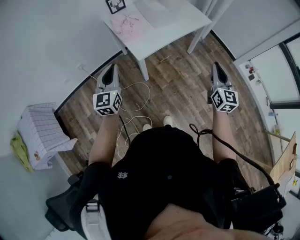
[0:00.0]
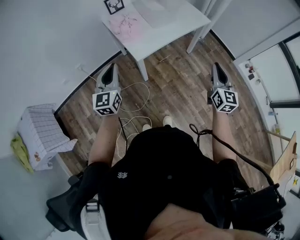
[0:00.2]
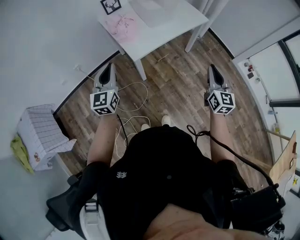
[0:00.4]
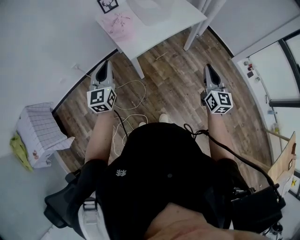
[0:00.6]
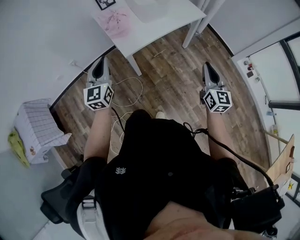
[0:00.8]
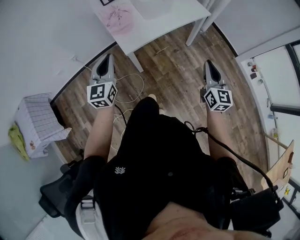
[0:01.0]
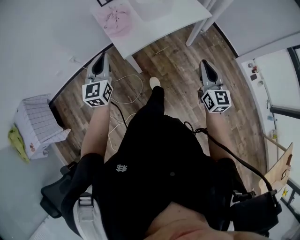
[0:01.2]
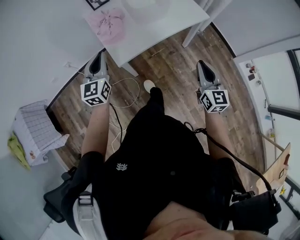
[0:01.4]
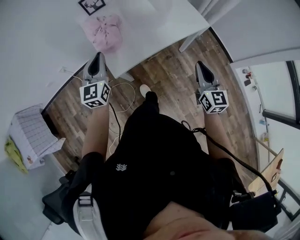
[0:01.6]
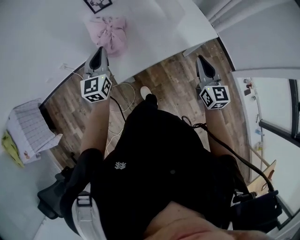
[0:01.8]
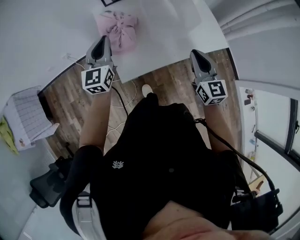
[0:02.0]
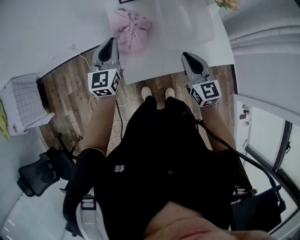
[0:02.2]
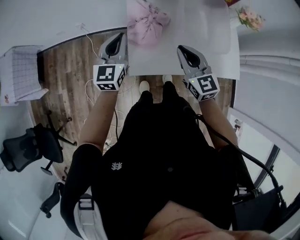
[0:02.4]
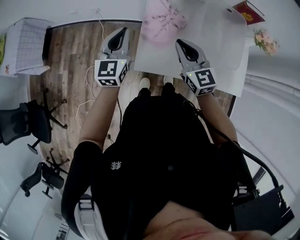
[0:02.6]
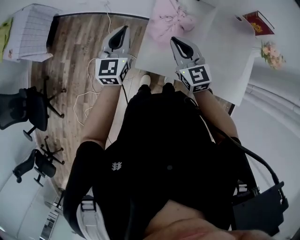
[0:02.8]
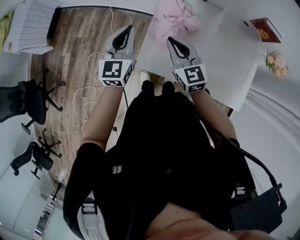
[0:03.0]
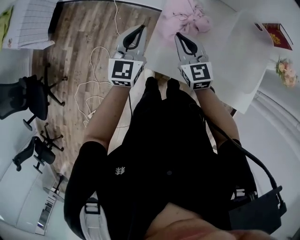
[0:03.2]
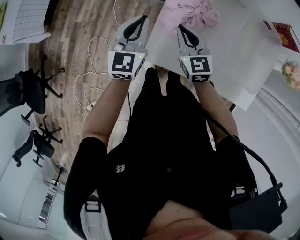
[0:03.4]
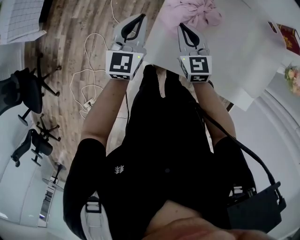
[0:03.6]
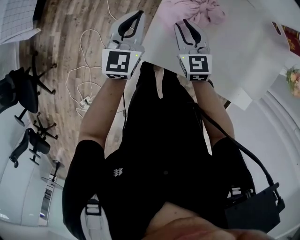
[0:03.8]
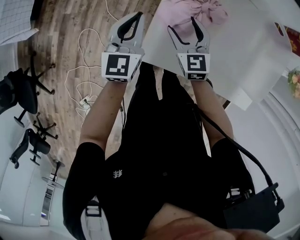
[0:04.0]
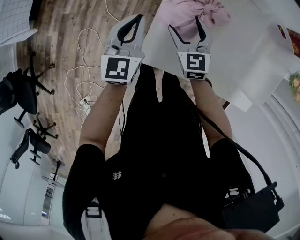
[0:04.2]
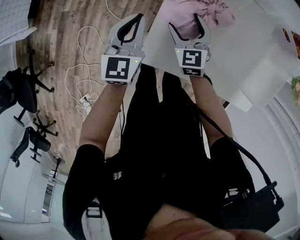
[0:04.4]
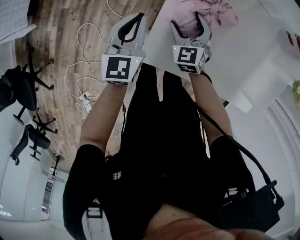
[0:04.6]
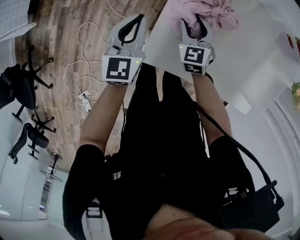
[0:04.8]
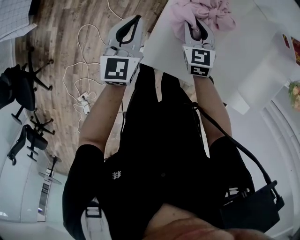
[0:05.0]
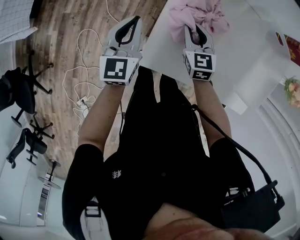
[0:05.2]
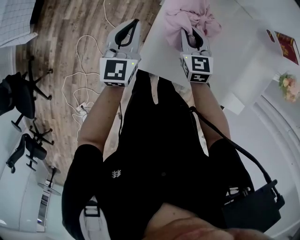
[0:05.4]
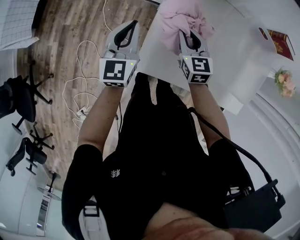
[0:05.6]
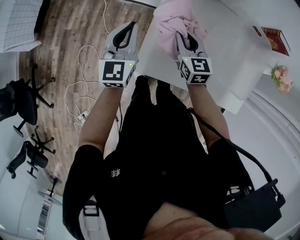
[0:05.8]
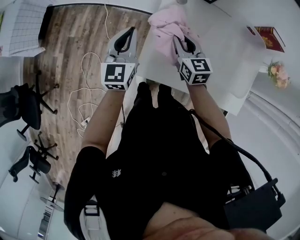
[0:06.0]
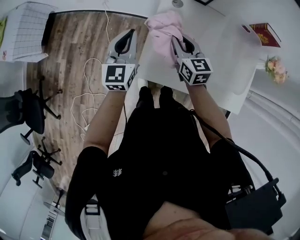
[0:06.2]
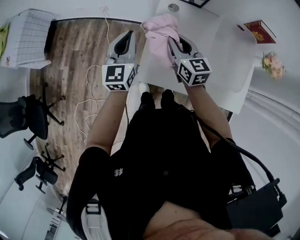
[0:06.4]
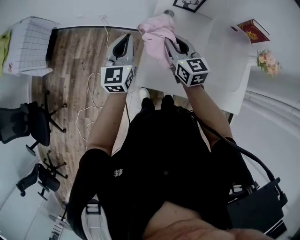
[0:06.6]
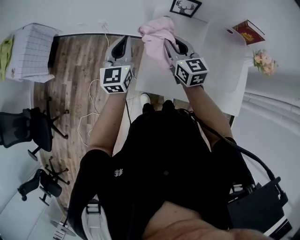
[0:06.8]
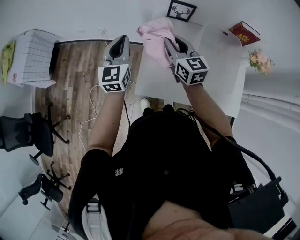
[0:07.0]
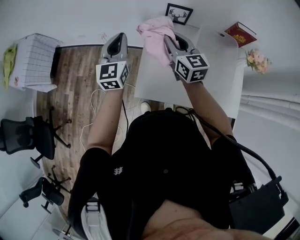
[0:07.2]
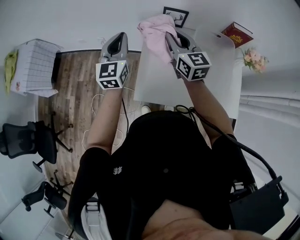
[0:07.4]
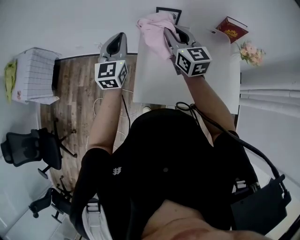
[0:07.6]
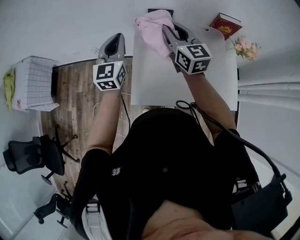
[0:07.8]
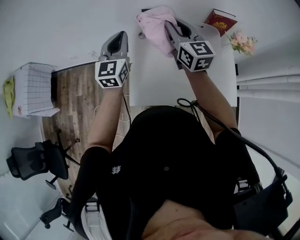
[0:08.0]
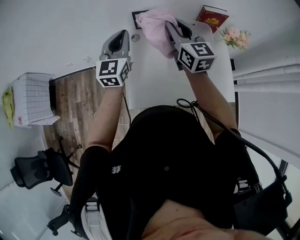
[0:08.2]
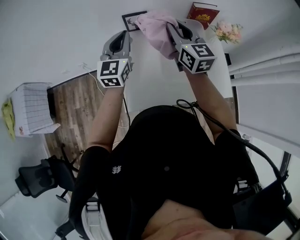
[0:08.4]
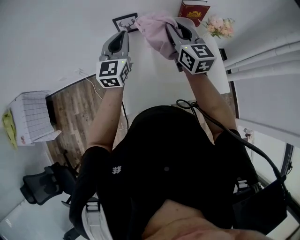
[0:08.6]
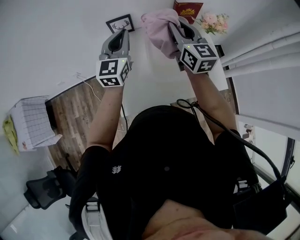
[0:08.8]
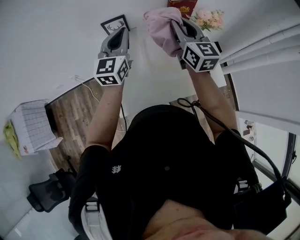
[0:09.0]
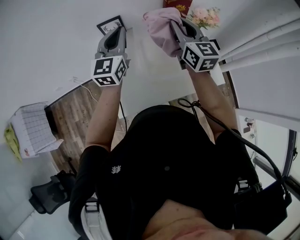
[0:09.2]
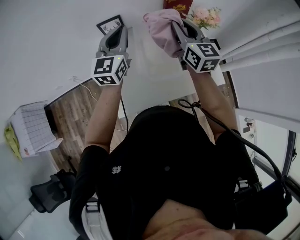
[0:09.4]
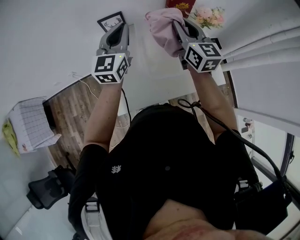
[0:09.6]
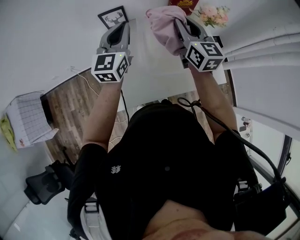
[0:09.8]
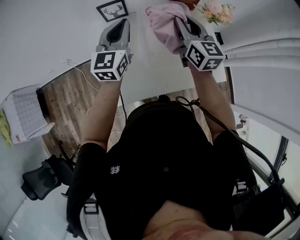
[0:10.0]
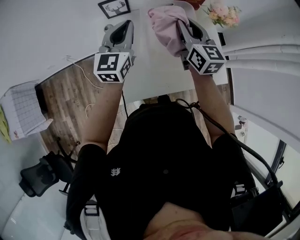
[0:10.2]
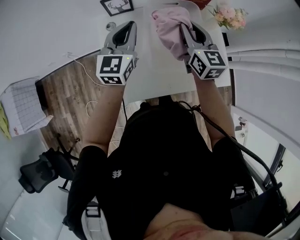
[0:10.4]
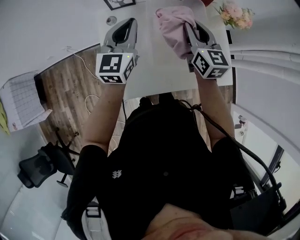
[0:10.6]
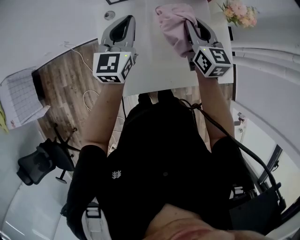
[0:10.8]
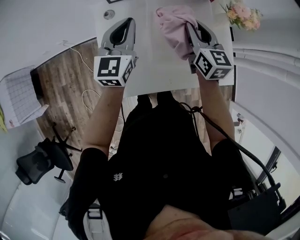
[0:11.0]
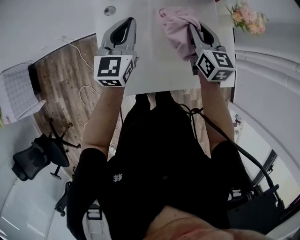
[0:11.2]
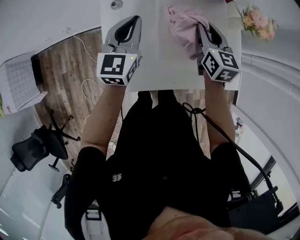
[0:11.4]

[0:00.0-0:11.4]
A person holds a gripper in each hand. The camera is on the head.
0:00.0 to 0:01.4: The left gripper shifts approximately 20 cm forward and to the right. The right gripper is displaced forward and downward by about 15 cm.
0:01.4 to 0:02.8: The right gripper ends up roughly 50 cm from where it was, and turns by some 60 degrees, while the left gripper ends up roughly 20 cm from where it was, and changes its angle by about 40 degrees.
0:02.8 to 0:04.2: The grippers both shift downward by some 15 cm. The right gripper opens up.
0:04.2 to 0:05.6: The right gripper changes place by roughly 5 cm, and closes its fingers.
0:05.6 to 0:07.2: The two grippers go approximately 20 cm upward. The right gripper turns by some 20 degrees.
0:07.2 to 0:08.6: The two grippers go about 20 cm to the right. The right gripper changes its angle by approximately 20 degrees. Meanwhile the left gripper swivels some 30 degrees.
0:08.6 to 0:10.0: The left gripper goes approximately 5 cm to the right; the right gripper travels to the right and downward by some 10 cm.
0:10.0 to 0:11.4: Both grippers move downward, approximately 15 cm.

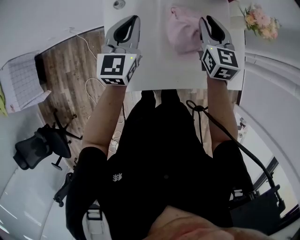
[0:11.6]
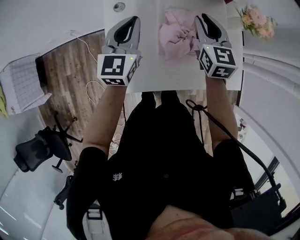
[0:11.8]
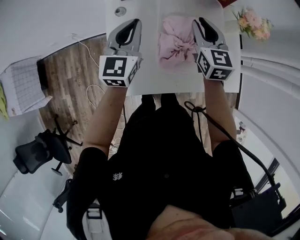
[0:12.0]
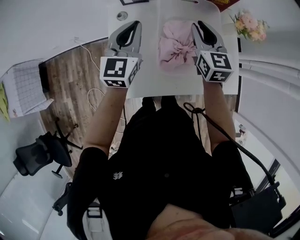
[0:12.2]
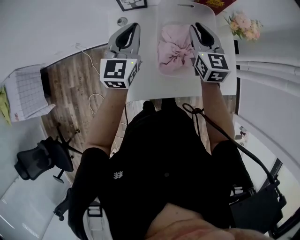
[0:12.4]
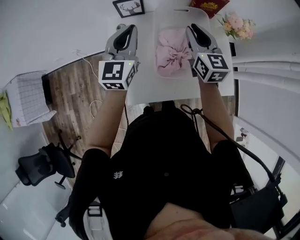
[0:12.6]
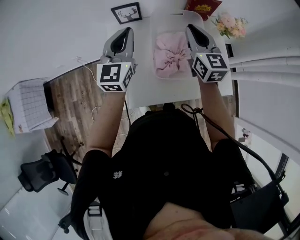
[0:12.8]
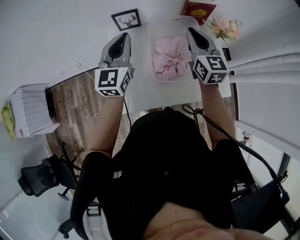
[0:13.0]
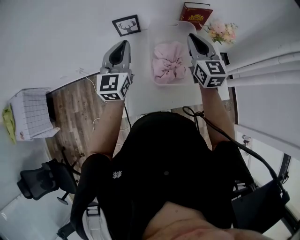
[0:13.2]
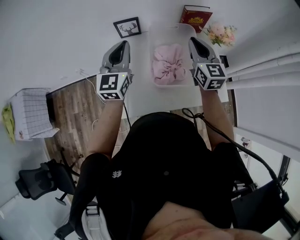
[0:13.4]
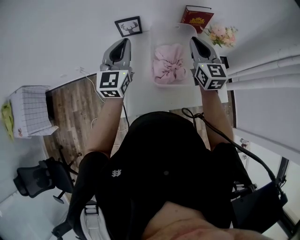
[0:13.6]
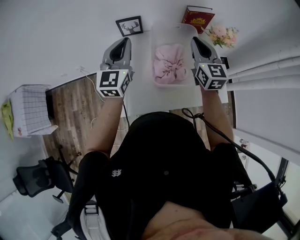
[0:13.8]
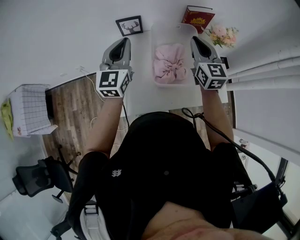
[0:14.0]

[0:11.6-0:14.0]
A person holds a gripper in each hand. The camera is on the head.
0:11.6 to 0:12.8: The grippers both shift upward by roughly 10 cm.
0:12.8 to 0:14.0: There are only small adjustments of the grippers.

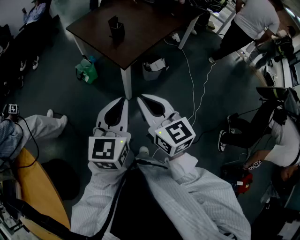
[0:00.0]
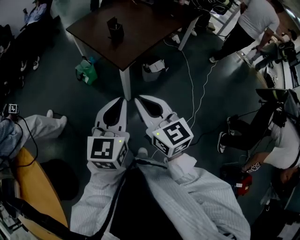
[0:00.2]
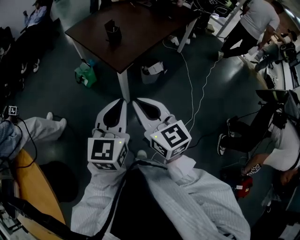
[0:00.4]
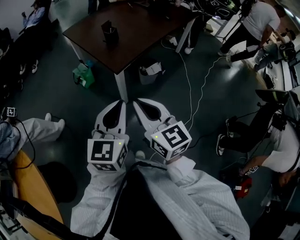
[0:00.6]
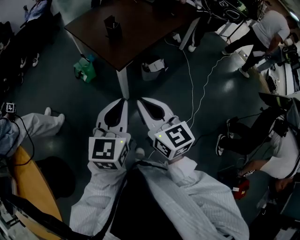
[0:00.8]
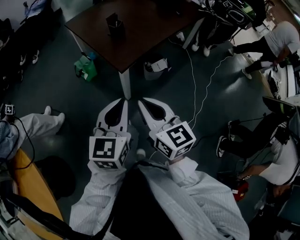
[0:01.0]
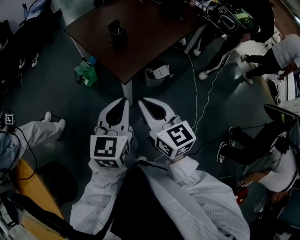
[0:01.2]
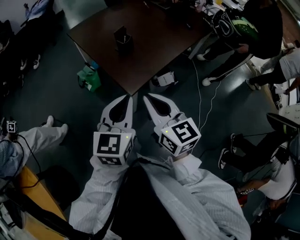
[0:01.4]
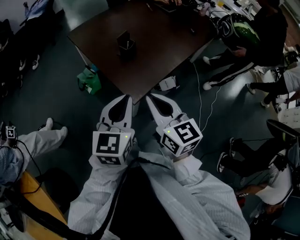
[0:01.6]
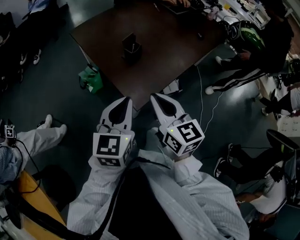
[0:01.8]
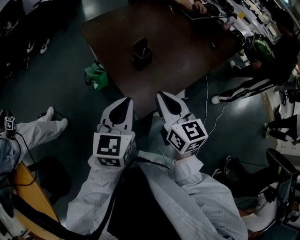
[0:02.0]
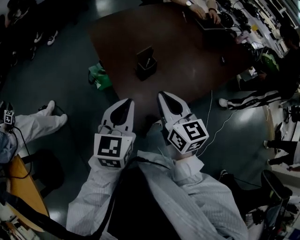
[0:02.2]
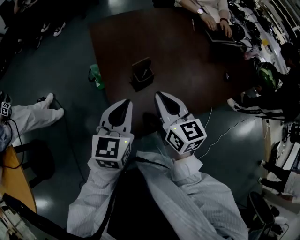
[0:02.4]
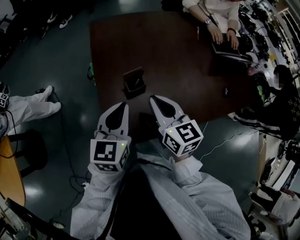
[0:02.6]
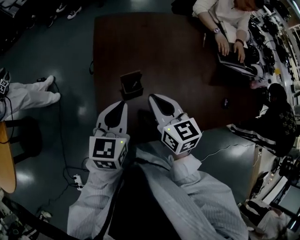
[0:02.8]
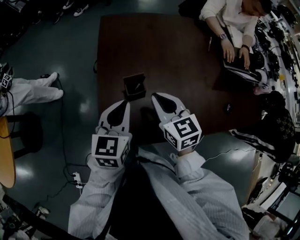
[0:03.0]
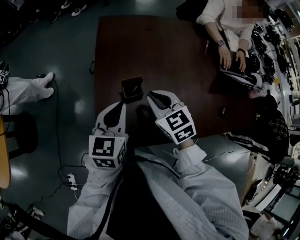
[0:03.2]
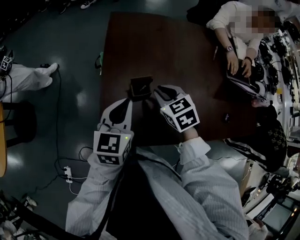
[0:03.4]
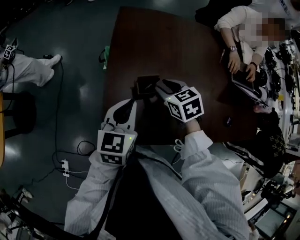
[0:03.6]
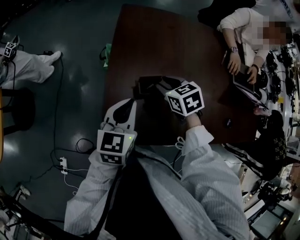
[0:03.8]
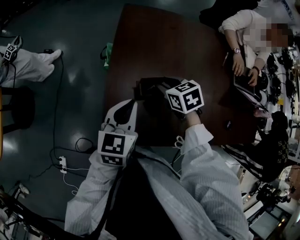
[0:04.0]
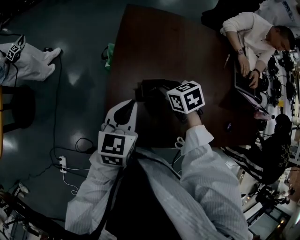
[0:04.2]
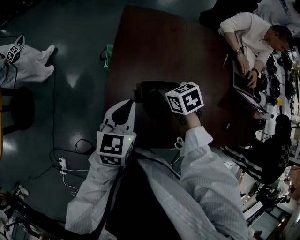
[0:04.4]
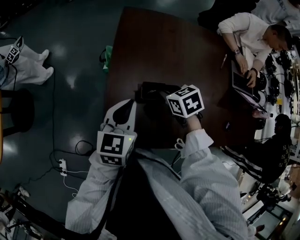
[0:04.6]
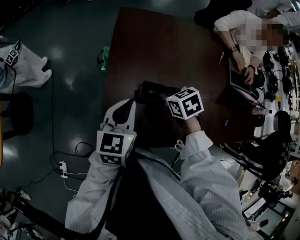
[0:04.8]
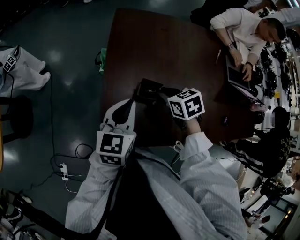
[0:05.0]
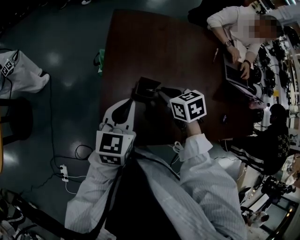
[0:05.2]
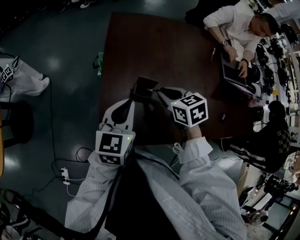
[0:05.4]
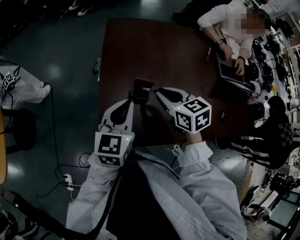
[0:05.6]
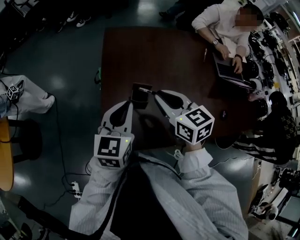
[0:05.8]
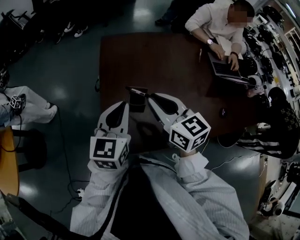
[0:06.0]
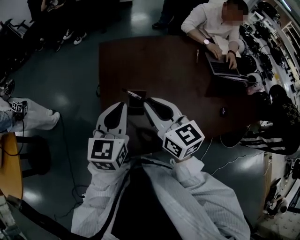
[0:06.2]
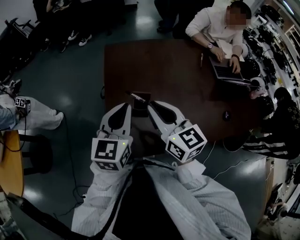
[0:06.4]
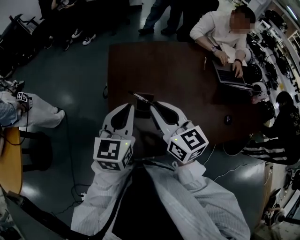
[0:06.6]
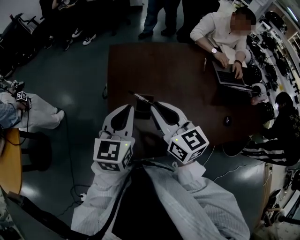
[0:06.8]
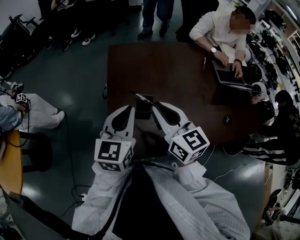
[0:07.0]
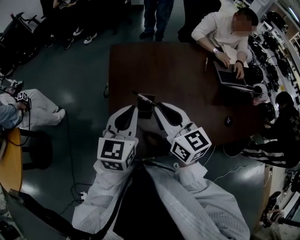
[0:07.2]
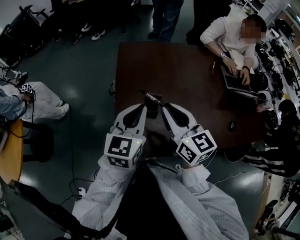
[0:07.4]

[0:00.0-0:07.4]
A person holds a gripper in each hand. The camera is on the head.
0:00.0 to 0:01.4: Both grippers move forward, approximately 20 cm.
0:01.4 to 0:03.0: The left gripper ends up approximately 35 cm from where it was, and turns by about 40 degrees. Meanwhile the right gripper shifts by some 40 cm, and turns by some 40 degrees.
0:03.0 to 0:04.4: The left gripper ends up about 5 cm from where it was, while the right gripper shifts approximately 10 cm downward and forward, rotates approximately 30 degrees, and opens its fingers.
0:04.4 to 0:06.0: The right gripper heads upward and backward, covering about 20 cm, and tips its fingers upward by some 40 degrees, while the left gripper shifts some 10 cm upward.
0:06.0 to 0:07.4: The grippers move only a little.

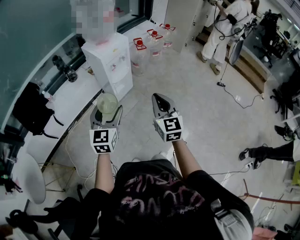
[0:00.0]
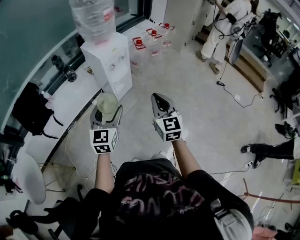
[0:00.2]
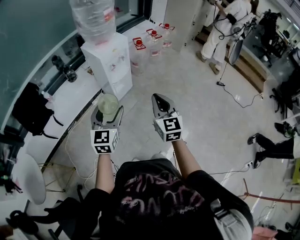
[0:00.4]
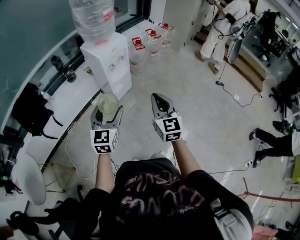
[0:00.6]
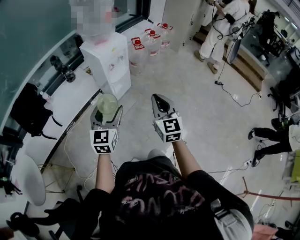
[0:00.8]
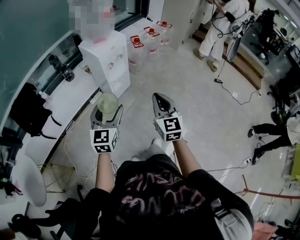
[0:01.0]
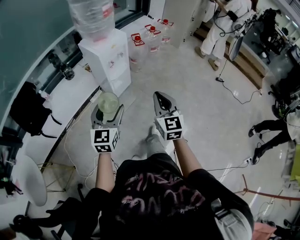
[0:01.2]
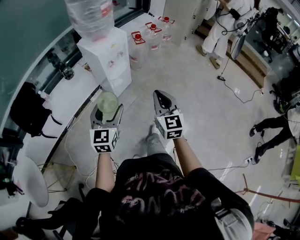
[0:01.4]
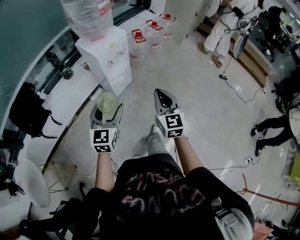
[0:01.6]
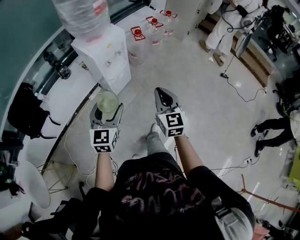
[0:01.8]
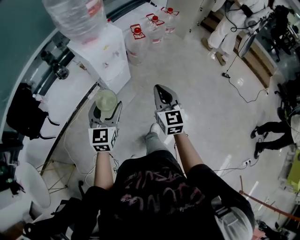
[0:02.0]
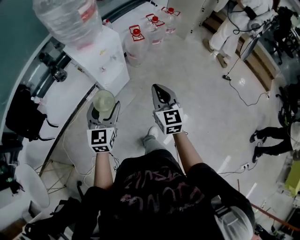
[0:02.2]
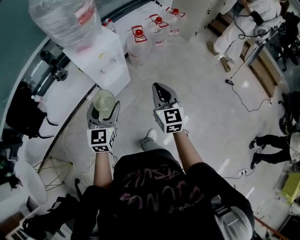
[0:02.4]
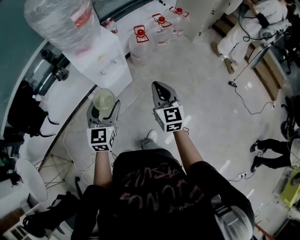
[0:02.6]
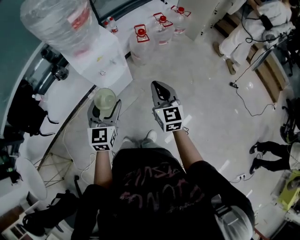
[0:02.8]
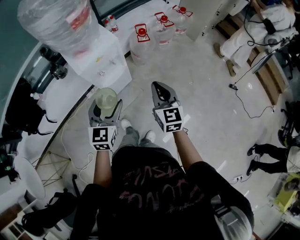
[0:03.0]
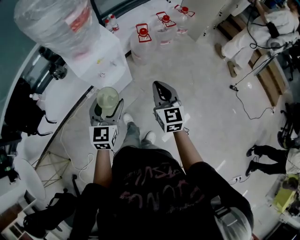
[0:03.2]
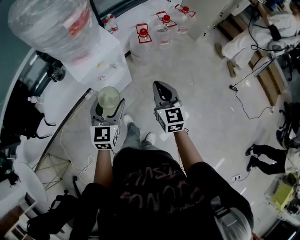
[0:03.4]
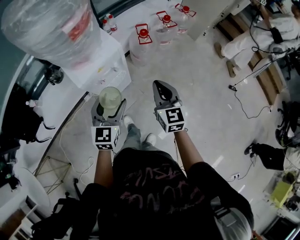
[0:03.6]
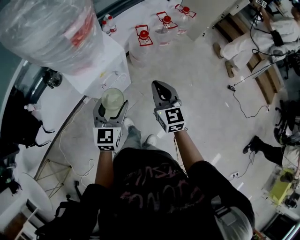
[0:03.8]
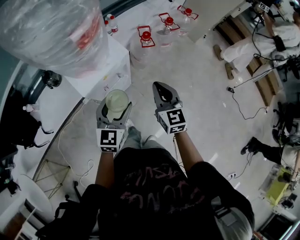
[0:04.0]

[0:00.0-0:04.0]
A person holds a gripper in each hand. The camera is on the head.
0:00.0 to 0:01.4: The grippers make only small movements.
0:01.4 to 0:02.6: The right gripper is displaced forward by approximately 30 cm; the left gripper is displaced forward and to the right by approximately 25 cm.
0:02.6 to 0:04.0: Both grippers travel together forward, roughly 20 cm.
